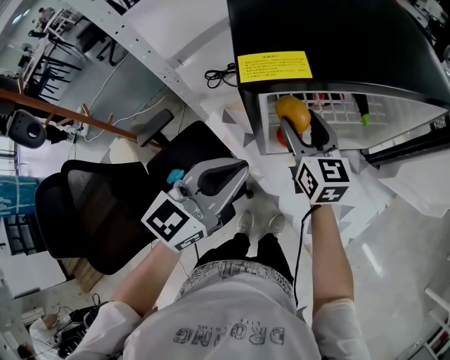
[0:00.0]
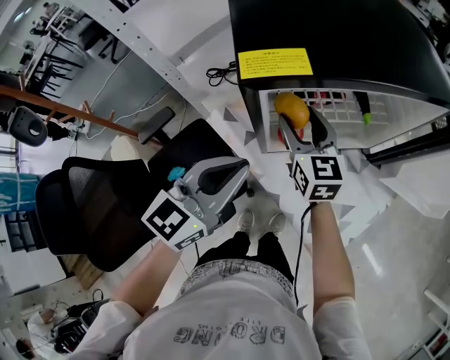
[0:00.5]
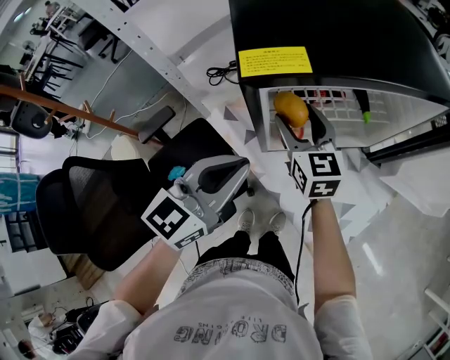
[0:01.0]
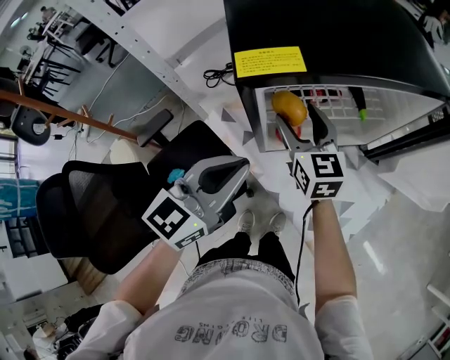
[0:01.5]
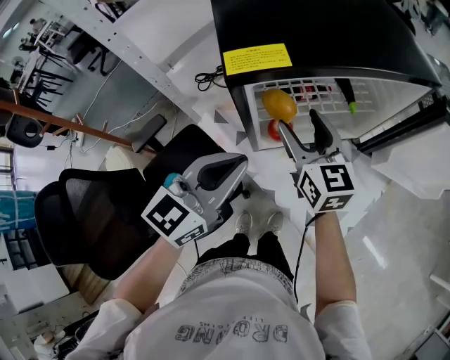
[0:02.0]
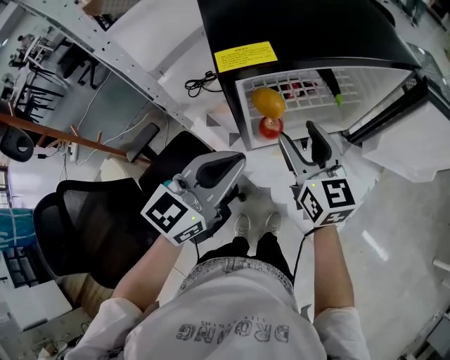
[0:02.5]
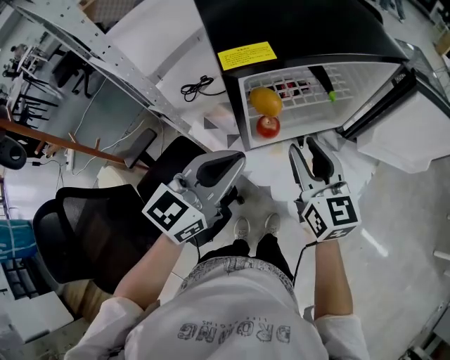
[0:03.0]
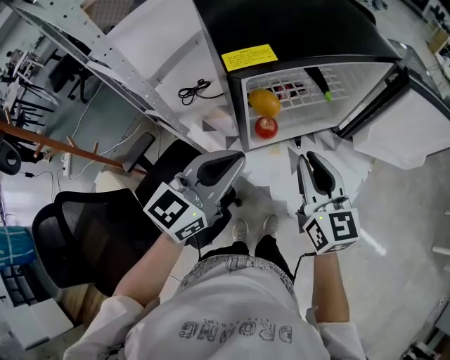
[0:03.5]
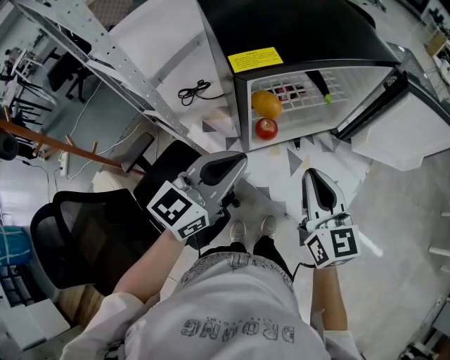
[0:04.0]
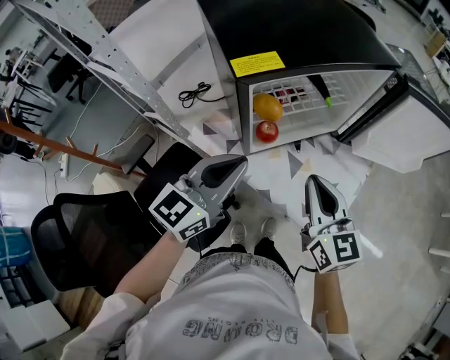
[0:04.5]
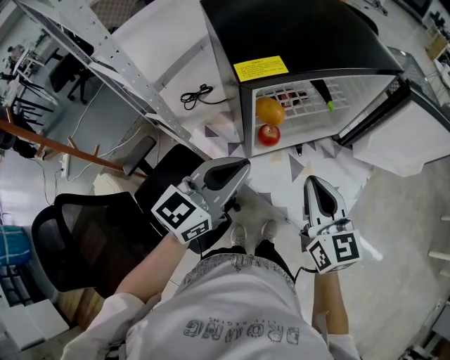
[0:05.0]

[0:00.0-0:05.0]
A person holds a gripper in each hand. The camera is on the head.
0:00.0 to 0:02.5: The right gripper goes roughly 10 cm backward and upward.
0:02.5 to 0:05.0: The right gripper travels backward by some 10 cm, and closes.

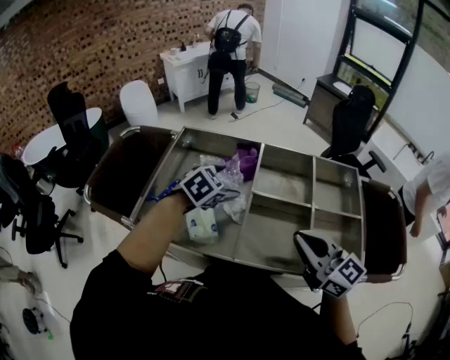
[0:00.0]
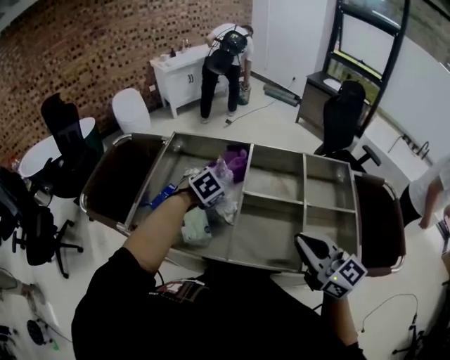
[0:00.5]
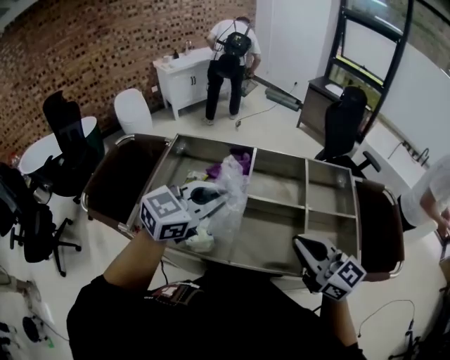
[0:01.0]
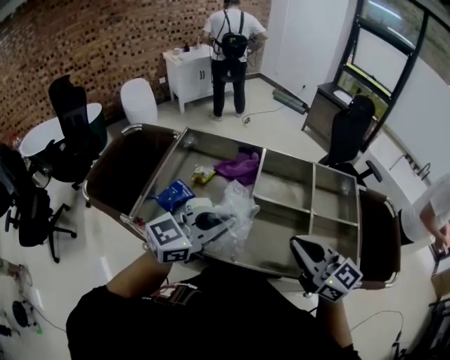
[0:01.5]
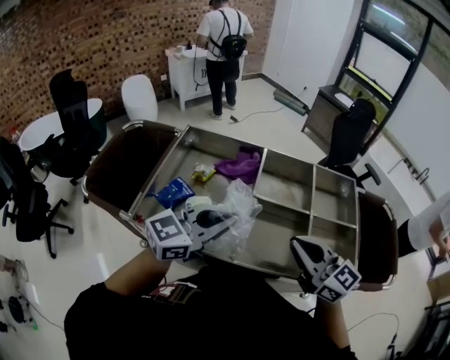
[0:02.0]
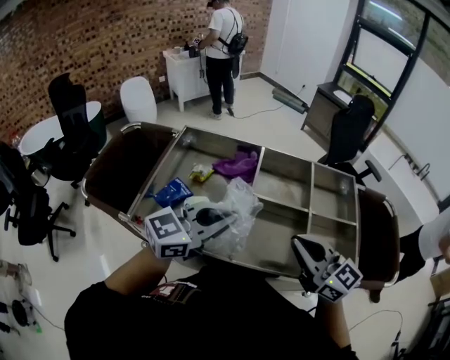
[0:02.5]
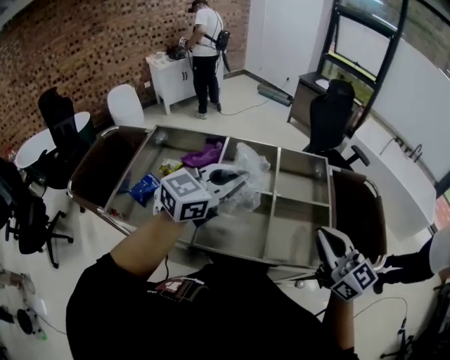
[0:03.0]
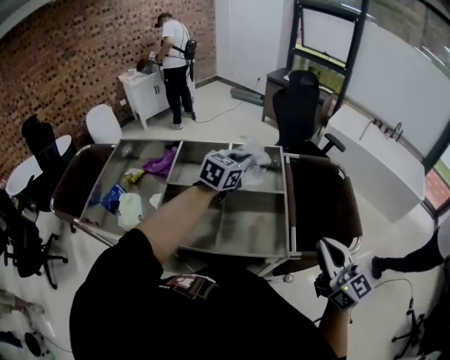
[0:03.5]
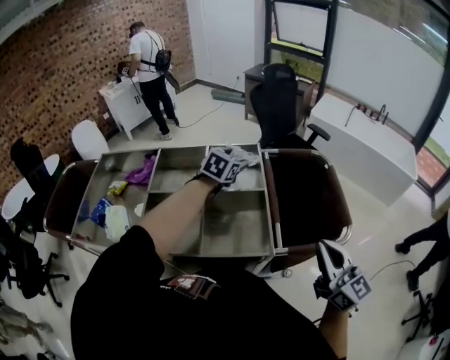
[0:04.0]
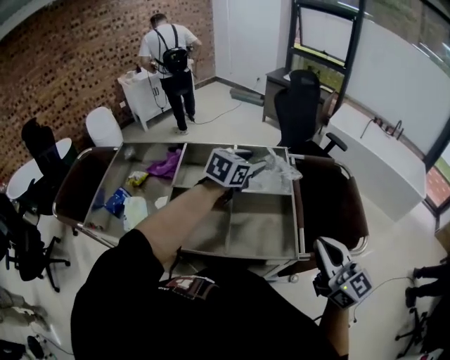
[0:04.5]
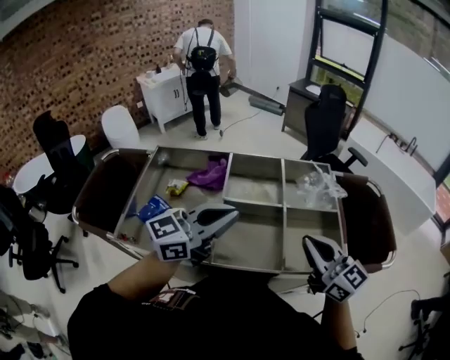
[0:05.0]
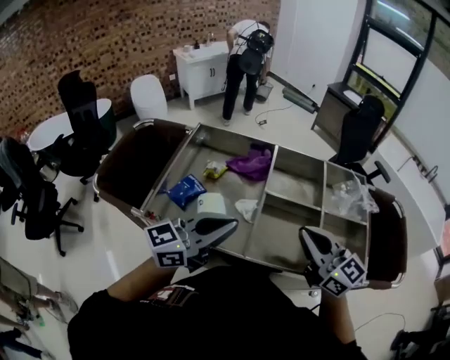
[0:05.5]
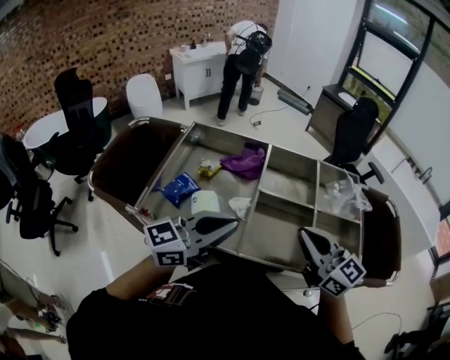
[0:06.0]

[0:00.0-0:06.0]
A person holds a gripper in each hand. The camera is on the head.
0:00.0 to 0:02.0: The left gripper travels backward and upward by some 20 cm, tips its fingers upward by approximately 40 degrees, and closes its fingers.
0:02.0 to 0:04.0: The left gripper moves to the right and forward, roughly 40 cm, tilts its fingers about 30 degrees downward, and opens its fingers. The right gripper travels to the right by some 40 cm, and turns by approximately 30 degrees.
0:04.0 to 0:06.0: The right gripper goes roughly 40 cm to the left, and rotates approximately 30 degrees. Meanwhile the left gripper moves to the left and backward, about 50 cm, tilts its fingers about 40 degrees upward, and closes its fingers.

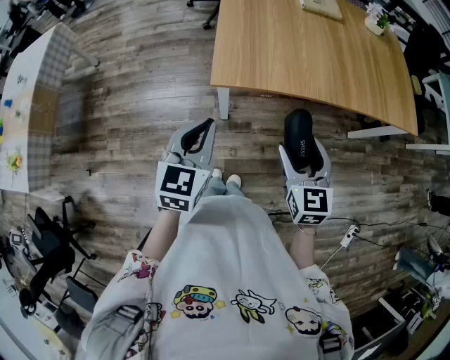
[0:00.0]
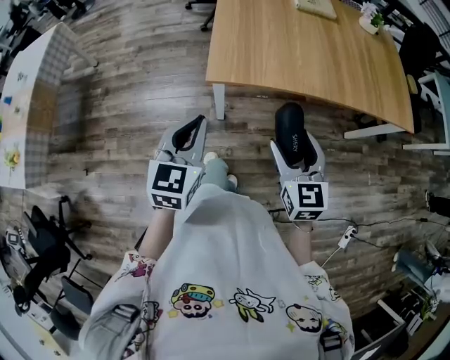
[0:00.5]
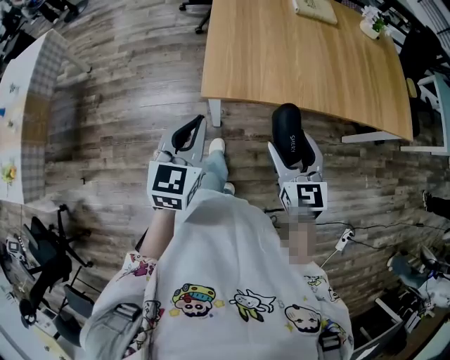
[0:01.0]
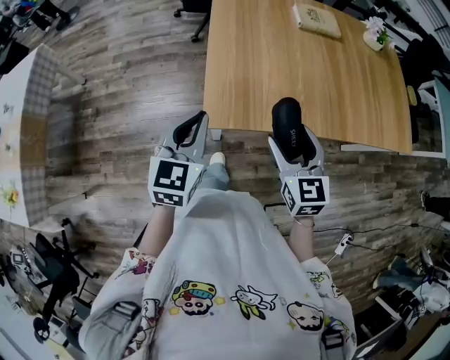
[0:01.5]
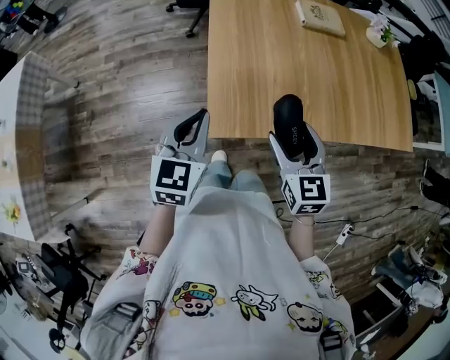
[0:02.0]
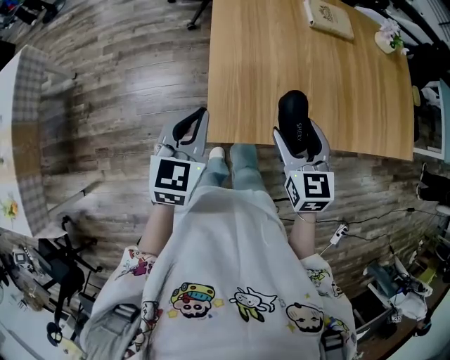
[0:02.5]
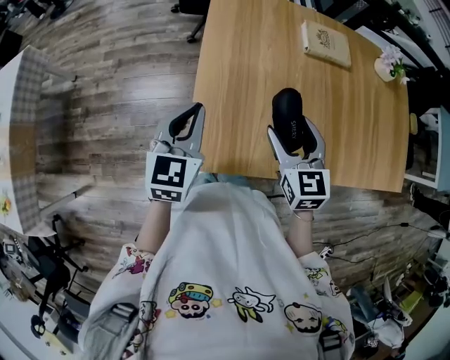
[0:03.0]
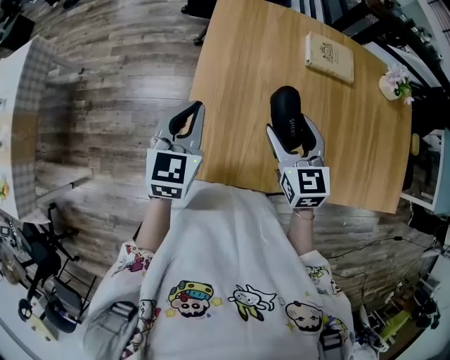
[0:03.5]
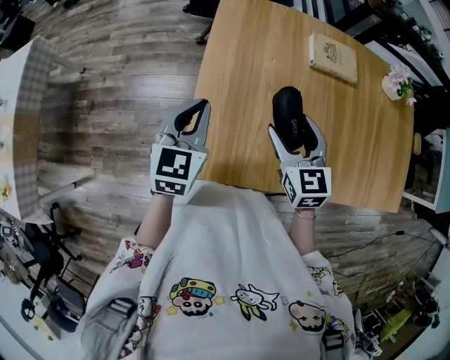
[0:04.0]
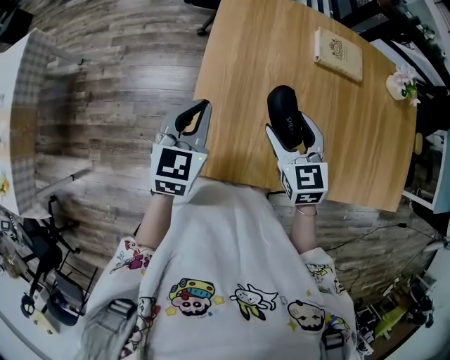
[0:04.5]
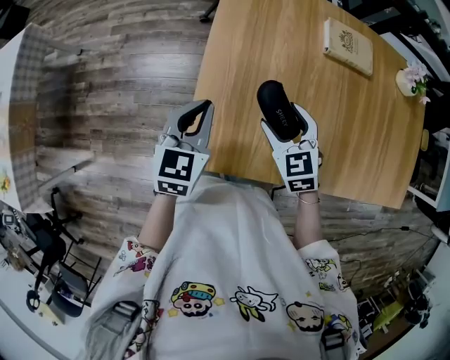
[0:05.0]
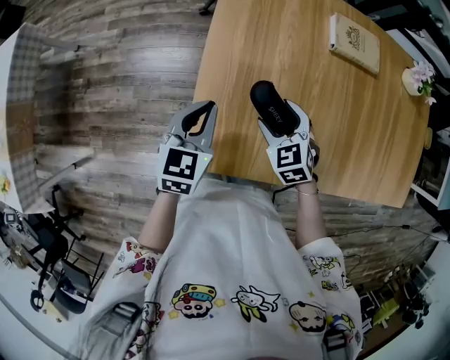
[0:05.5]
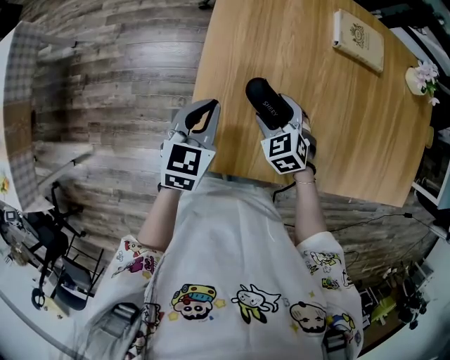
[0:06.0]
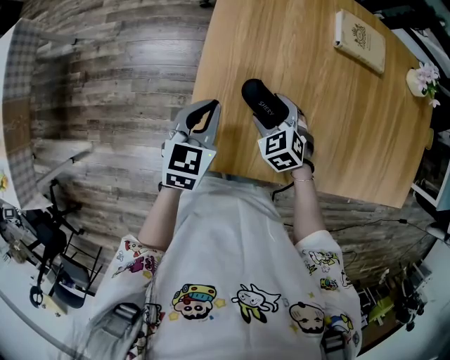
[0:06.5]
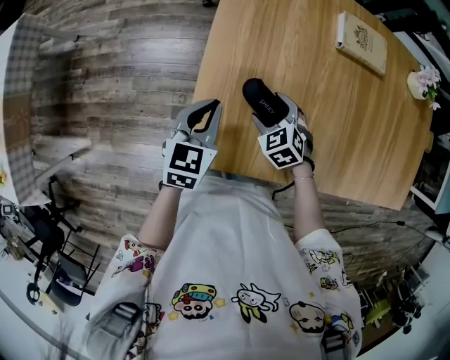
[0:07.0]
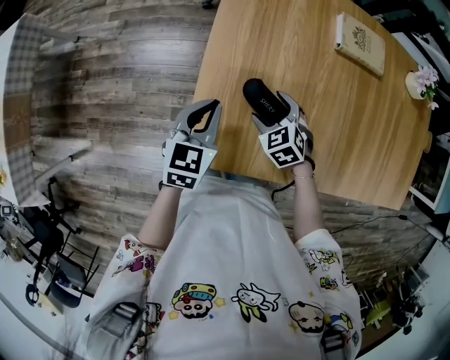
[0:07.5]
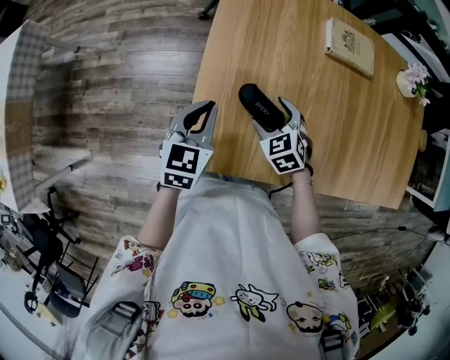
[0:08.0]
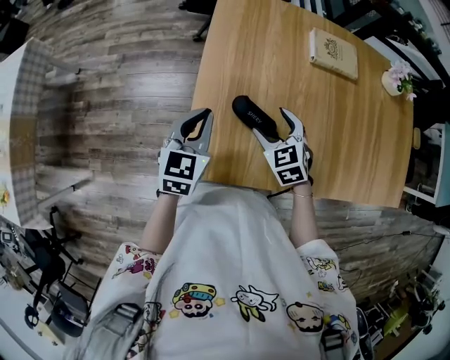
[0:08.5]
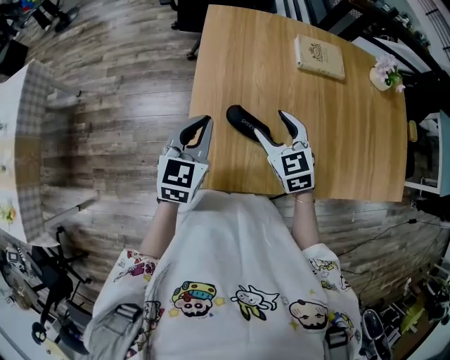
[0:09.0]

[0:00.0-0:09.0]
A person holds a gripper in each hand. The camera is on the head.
0:00.0 to 0:02.0: The two grippers go roughly 20 cm forward.
0:02.0 to 0:04.5: The grippers both shift forward by roughly 20 cm.
0:04.5 to 0:07.0: The right gripper moves downward, about 20 cm, and swivels some 30 degrees. The left gripper shifts approximately 10 cm downward.
0:07.0 to 0:09.0: The right gripper travels upward by about 15 cm, and swivels about 30 degrees. Meanwhile the left gripper heads upward, covering roughly 10 cm.

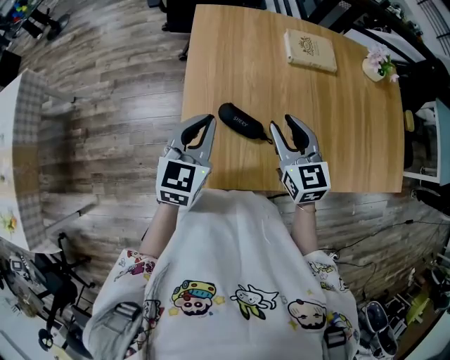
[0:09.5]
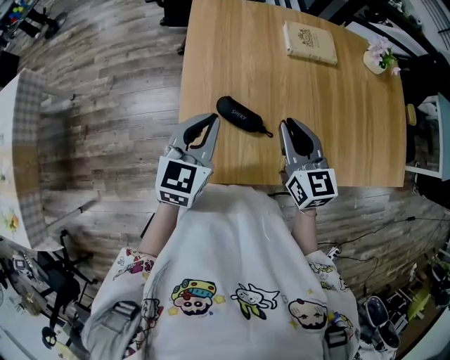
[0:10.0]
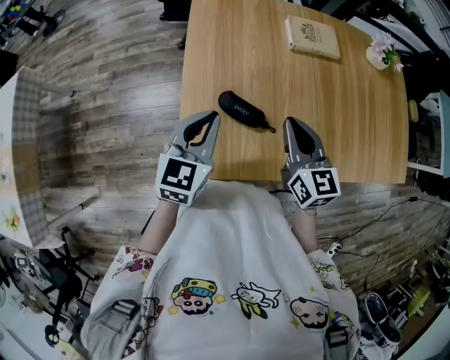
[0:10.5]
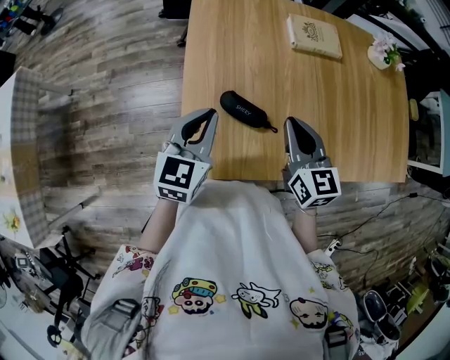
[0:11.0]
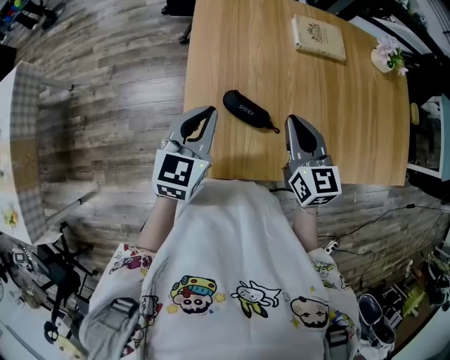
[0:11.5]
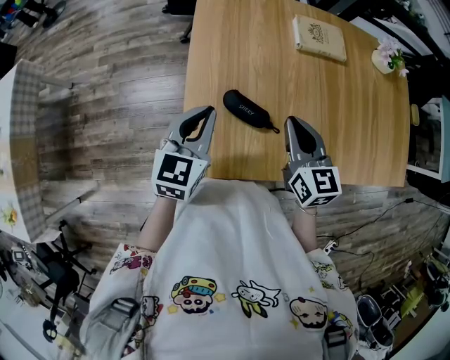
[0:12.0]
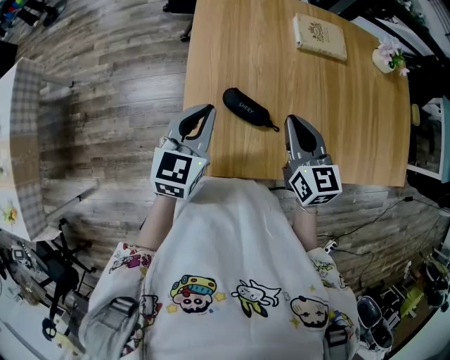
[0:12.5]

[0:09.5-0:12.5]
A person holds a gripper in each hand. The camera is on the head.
0:09.5 to 0:11.0: The right gripper closes its fingers.
0:11.0 to 0:12.5: There are only small adjustments of the grippers.

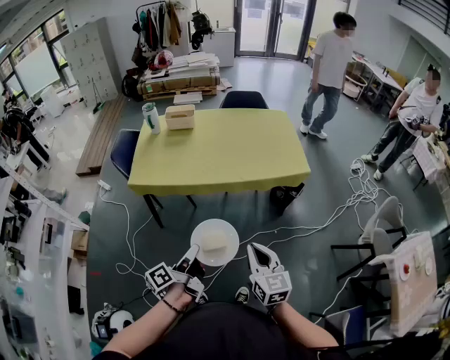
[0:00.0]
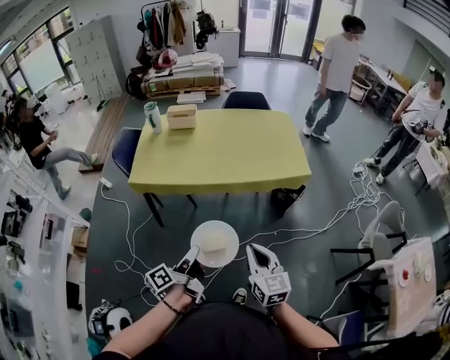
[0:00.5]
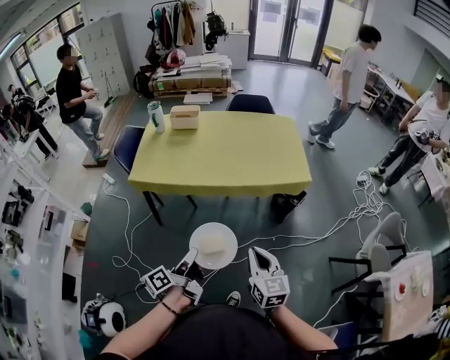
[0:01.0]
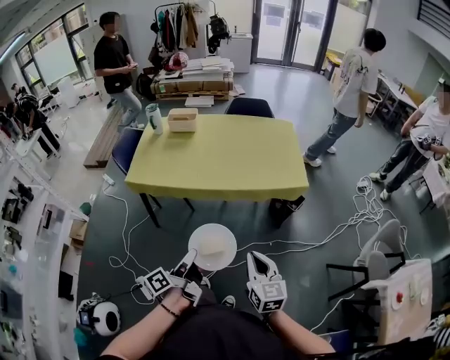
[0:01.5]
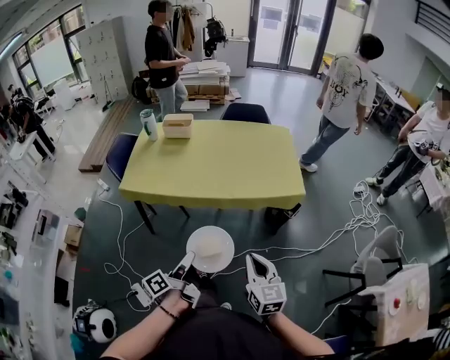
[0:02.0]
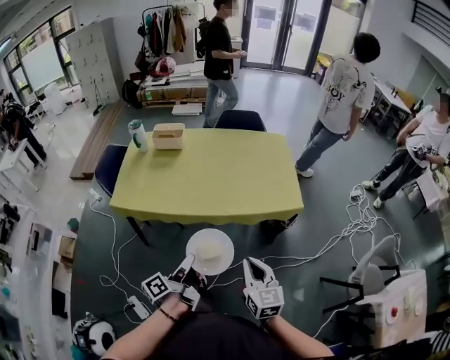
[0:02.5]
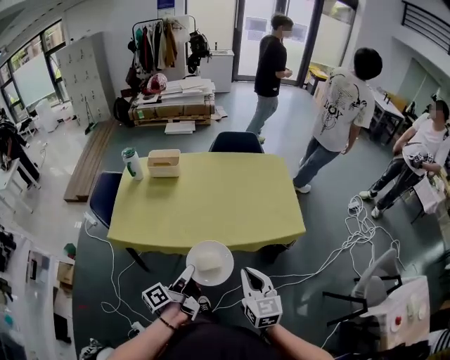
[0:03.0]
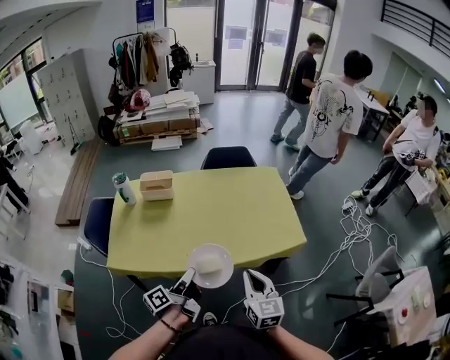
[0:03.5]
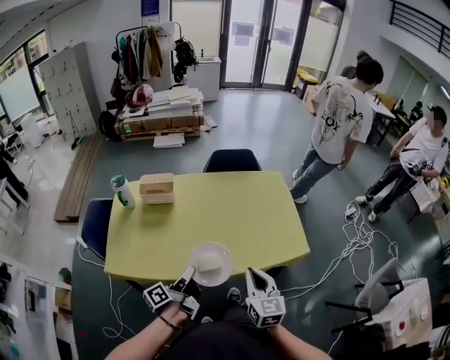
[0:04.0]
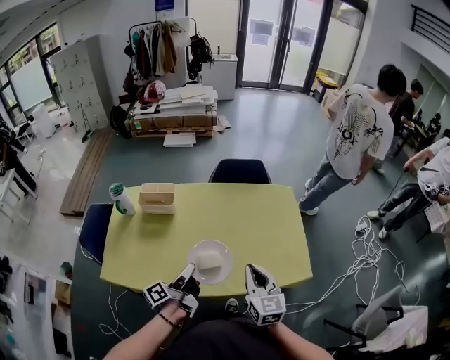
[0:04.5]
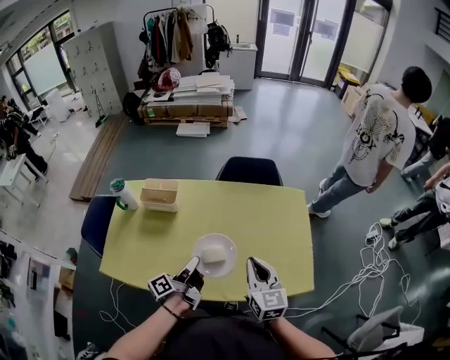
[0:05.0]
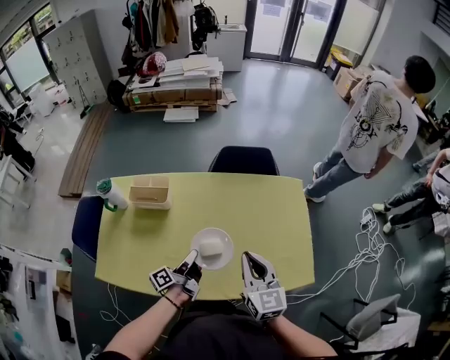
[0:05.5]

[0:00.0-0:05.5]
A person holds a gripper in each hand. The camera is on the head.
0:00.0 to 0:02.0: The right gripper travels to the right and forward by roughly 10 cm. Meanwhile the left gripper moves to the right, about 10 cm.
0:02.0 to 0:03.5: The two grippers go roughly 30 cm forward.
0:03.5 to 0:05.5: The two grippers go about 30 cm forward.
